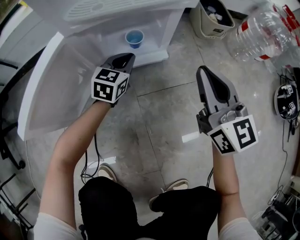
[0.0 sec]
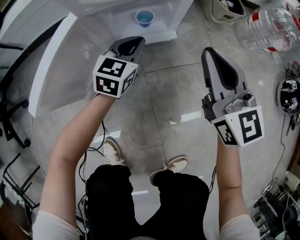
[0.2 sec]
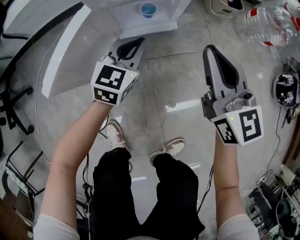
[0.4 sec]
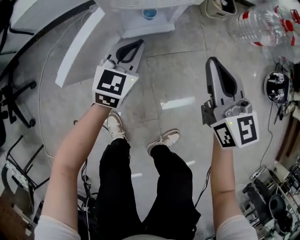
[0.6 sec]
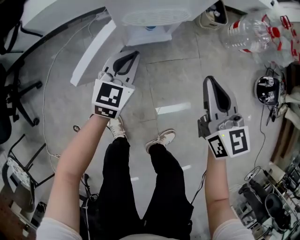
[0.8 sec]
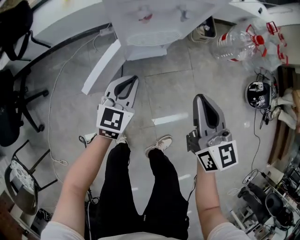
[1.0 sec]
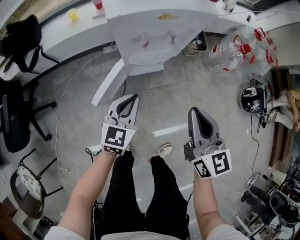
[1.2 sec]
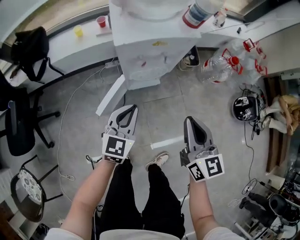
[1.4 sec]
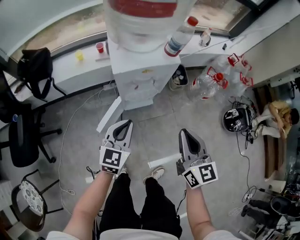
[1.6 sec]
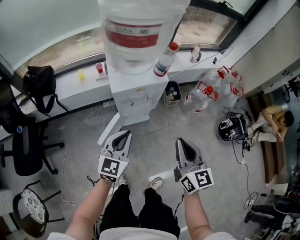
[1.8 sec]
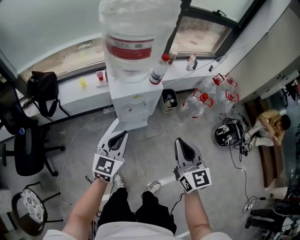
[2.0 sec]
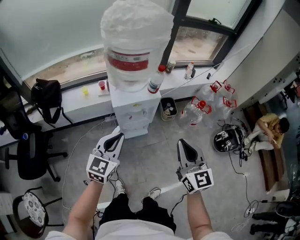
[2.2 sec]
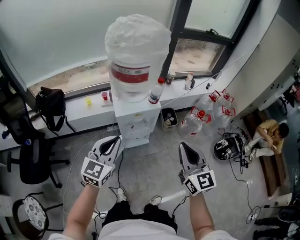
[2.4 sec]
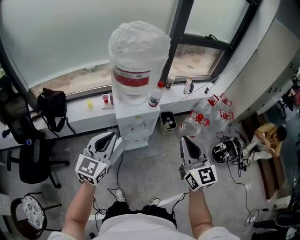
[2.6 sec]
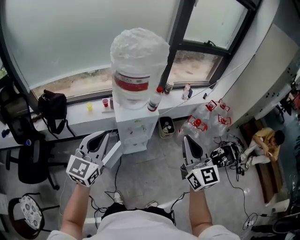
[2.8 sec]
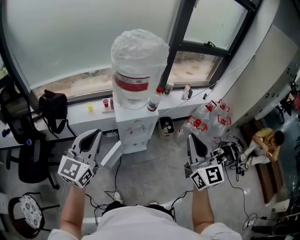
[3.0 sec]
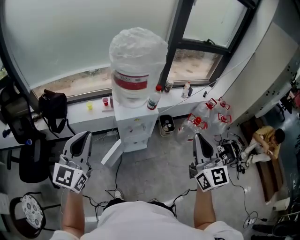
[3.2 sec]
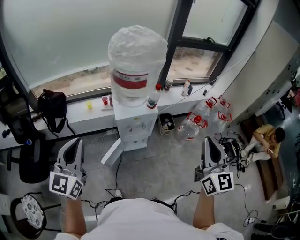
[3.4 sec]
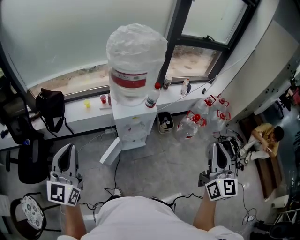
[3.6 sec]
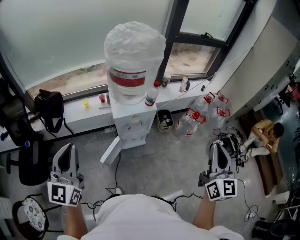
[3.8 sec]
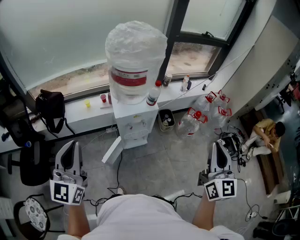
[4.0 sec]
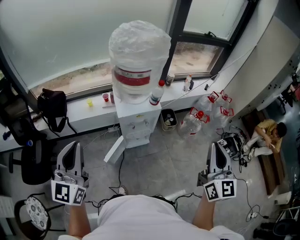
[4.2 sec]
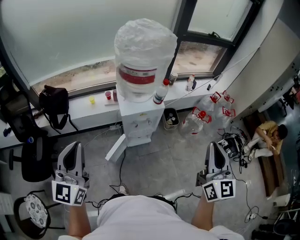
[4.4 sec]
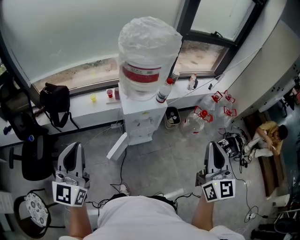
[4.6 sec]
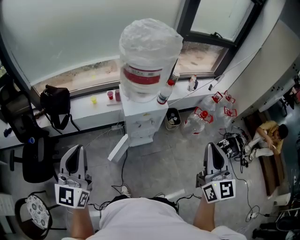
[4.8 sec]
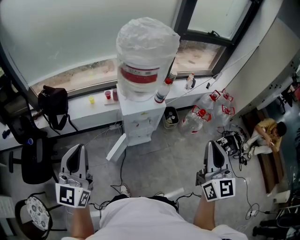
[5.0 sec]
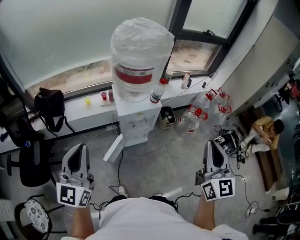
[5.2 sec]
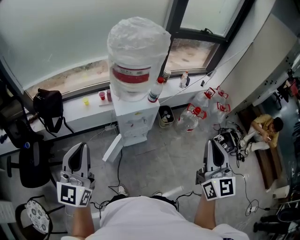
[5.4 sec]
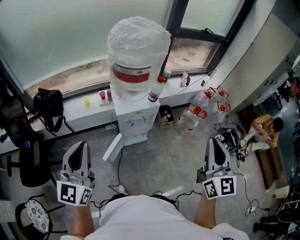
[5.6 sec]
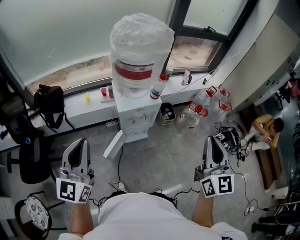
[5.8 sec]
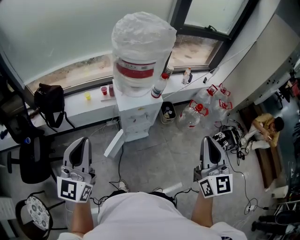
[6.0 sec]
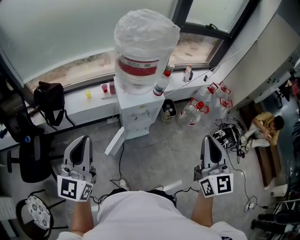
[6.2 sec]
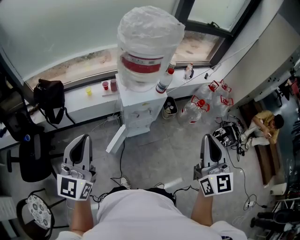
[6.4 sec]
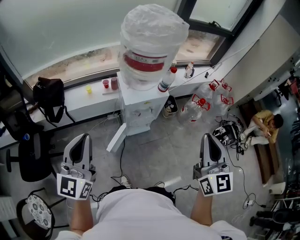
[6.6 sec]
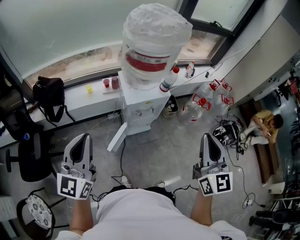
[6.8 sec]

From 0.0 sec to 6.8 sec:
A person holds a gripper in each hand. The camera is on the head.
From 0.0 sec to 1.4 sec: Both grippers travel together upward, roughly 50 cm.
From 1.4 sec to 2.8 sec: Both grippers travel together upward, approximately 40 cm. The right gripper rotates about 20 degrees.
From 2.8 sec to 4.0 sec: The left gripper goes about 10 cm to the left and backward; the right gripper shifts roughly 10 cm to the right.
From 5.4 sec to 6.8 sec: The left gripper moves to the left, approximately 5 cm; the right gripper travels to the left by approximately 10 cm.

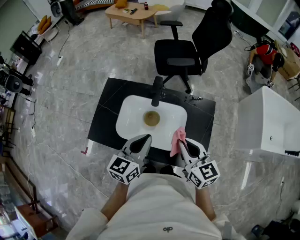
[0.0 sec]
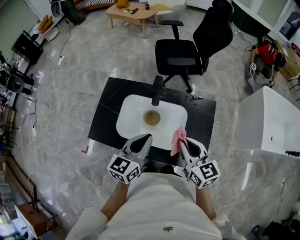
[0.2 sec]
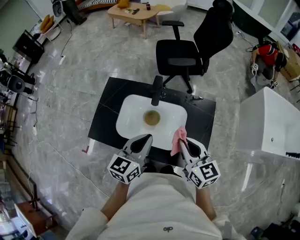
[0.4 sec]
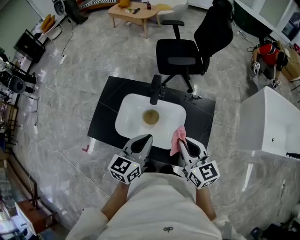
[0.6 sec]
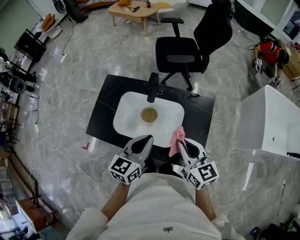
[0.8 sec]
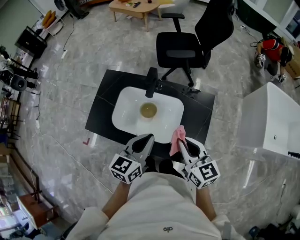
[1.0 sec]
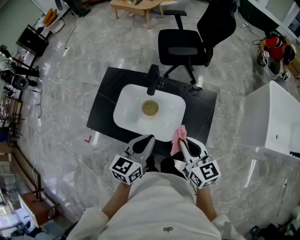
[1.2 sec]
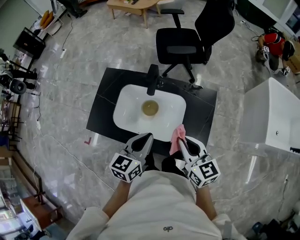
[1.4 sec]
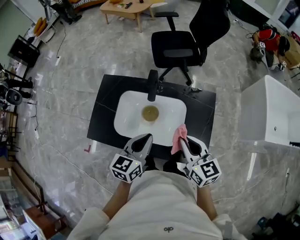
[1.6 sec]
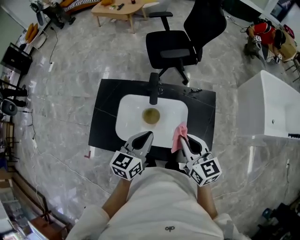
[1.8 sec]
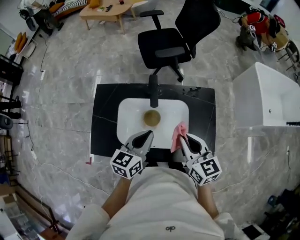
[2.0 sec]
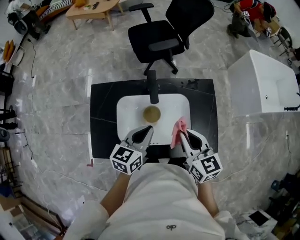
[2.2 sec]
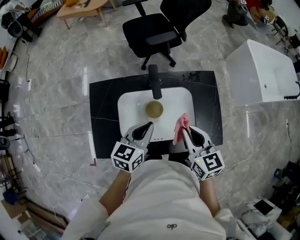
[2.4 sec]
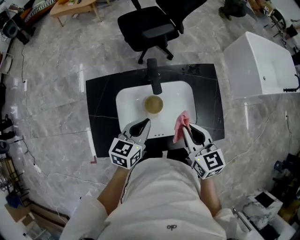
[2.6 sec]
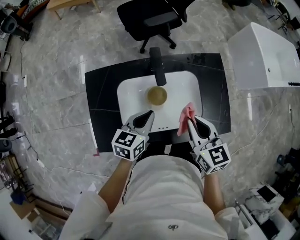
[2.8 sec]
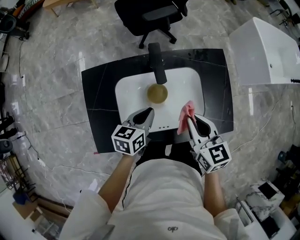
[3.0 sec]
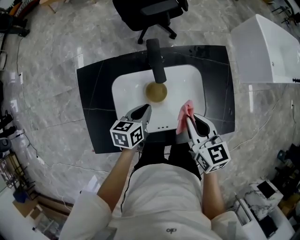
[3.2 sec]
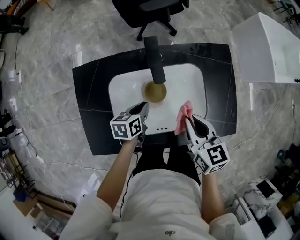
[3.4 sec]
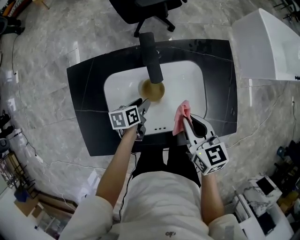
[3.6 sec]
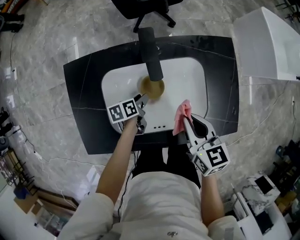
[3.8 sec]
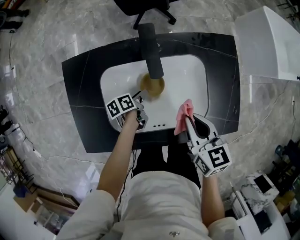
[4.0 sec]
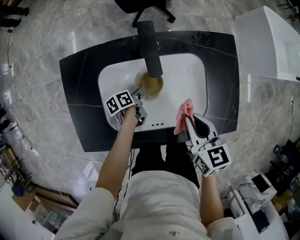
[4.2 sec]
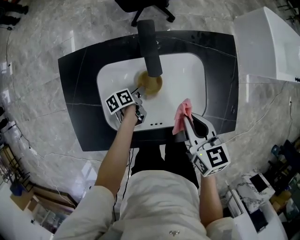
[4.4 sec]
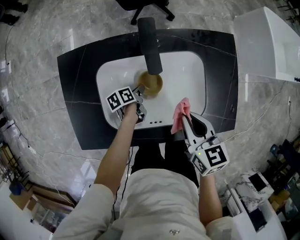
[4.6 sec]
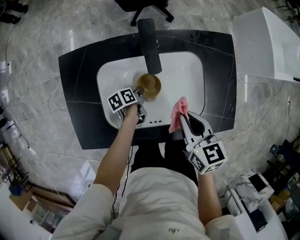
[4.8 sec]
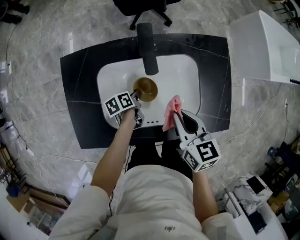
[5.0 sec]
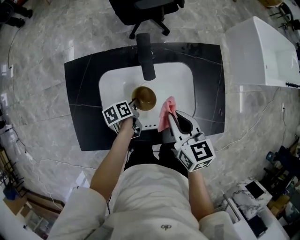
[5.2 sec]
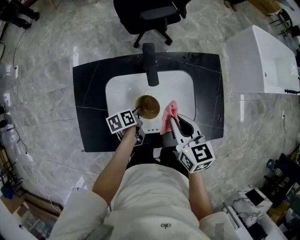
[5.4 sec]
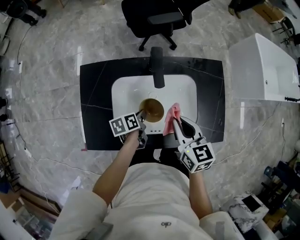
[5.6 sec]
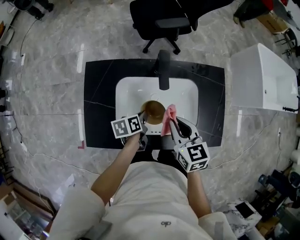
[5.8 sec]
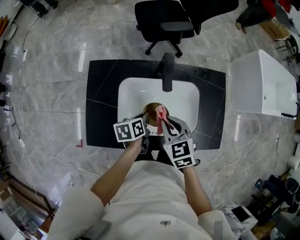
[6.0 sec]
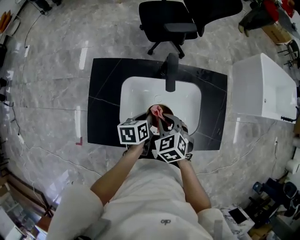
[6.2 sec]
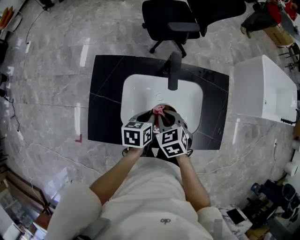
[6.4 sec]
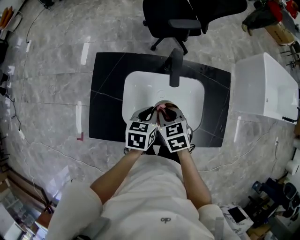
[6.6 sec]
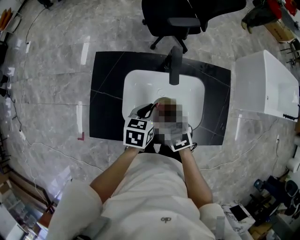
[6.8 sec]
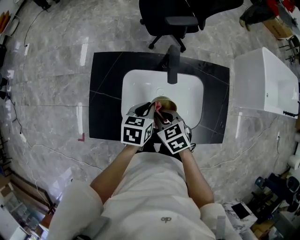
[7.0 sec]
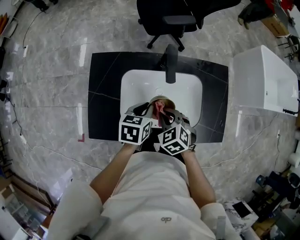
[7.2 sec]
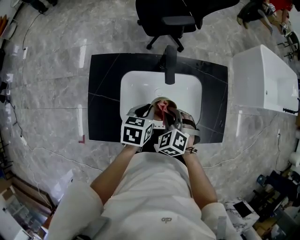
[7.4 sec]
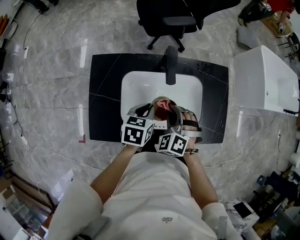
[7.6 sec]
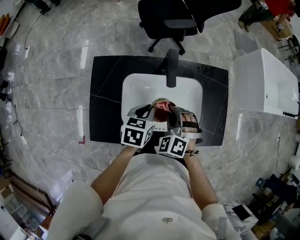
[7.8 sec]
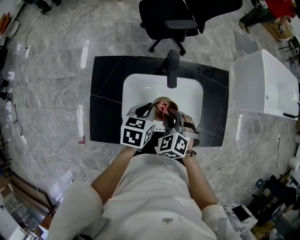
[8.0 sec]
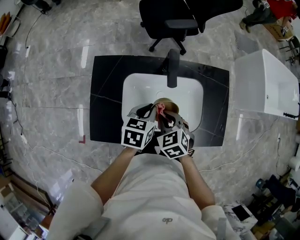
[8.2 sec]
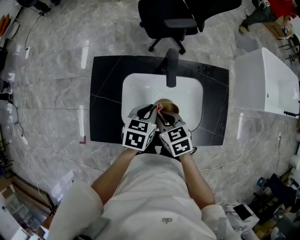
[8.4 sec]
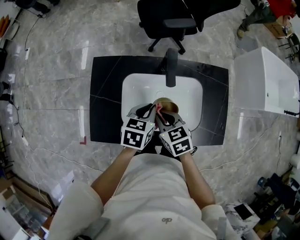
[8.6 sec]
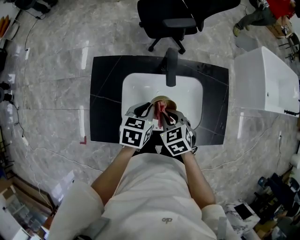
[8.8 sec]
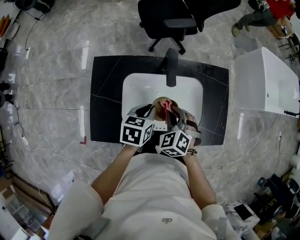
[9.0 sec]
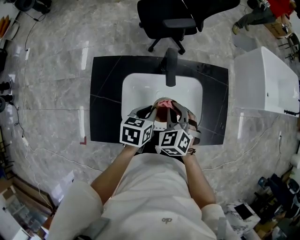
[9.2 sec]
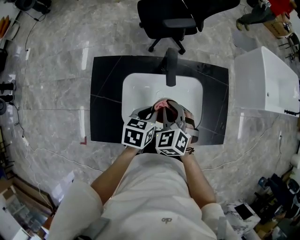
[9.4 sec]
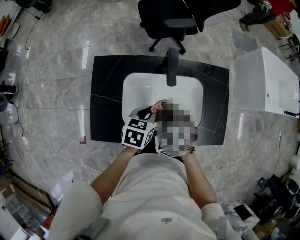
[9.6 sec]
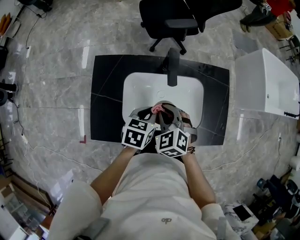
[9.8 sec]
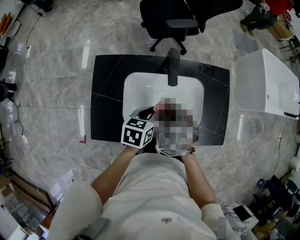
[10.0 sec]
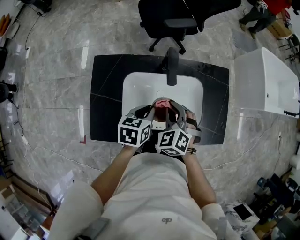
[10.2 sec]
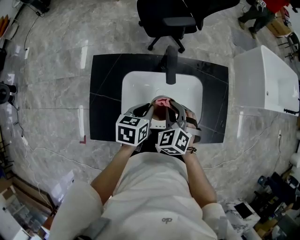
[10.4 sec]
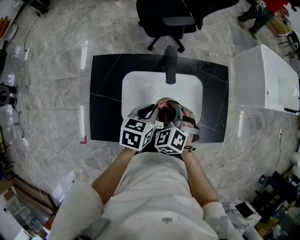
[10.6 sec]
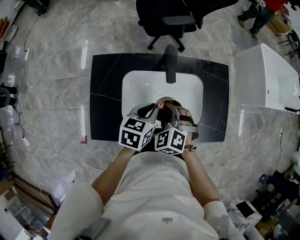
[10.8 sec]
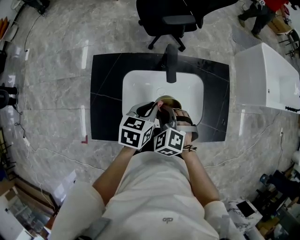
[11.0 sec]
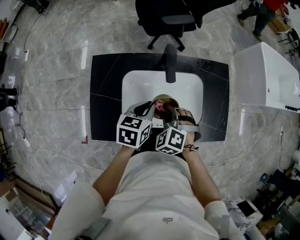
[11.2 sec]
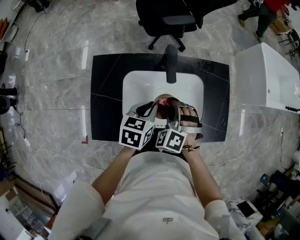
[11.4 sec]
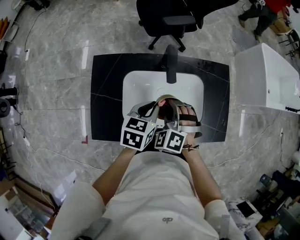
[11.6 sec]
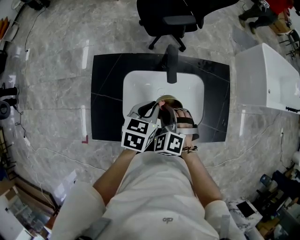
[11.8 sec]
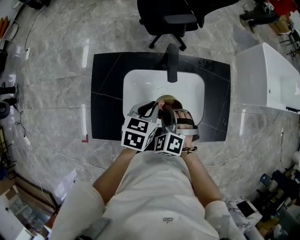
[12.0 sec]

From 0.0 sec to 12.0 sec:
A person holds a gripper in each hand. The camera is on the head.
From 1.6 sec to 3.0 sec: The right gripper goes approximately 15 cm to the left and downward, and rotates roughly 20 degrees. Meanwhile the left gripper shifts roughly 20 cm downward, to the left and forward, and changes its angle by about 30 degrees.
From 3.0 sec to 4.4 sec: The left gripper shifts approximately 25 cm downward, rolls counterclockwise, seen from behind, by about 50 degrees, and opens its fingers; the right gripper shifts approximately 10 cm downward.
From 4.4 sec to 6.0 sec: The left gripper moves upward, some 20 cm, and closes its fingers. Meanwhile the right gripper is displaced to the left by approximately 10 cm, and swivels some 30 degrees.
From 6.0 sec to 7.6 sec: The left gripper goes some 5 cm upward, and rotates about 30 degrees, while the right gripper rotates around the line of its fingers by some 40 degrees, counterclockwise from behind.
From 9.0 sec to 10.4 sec: There are only small adjustments of the grippers.

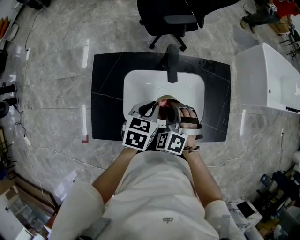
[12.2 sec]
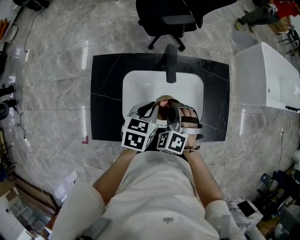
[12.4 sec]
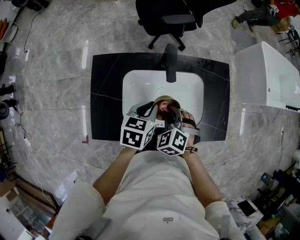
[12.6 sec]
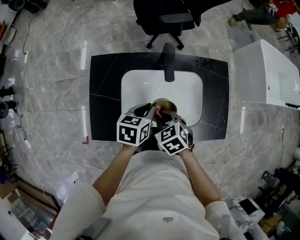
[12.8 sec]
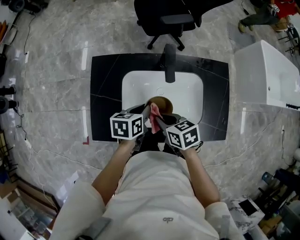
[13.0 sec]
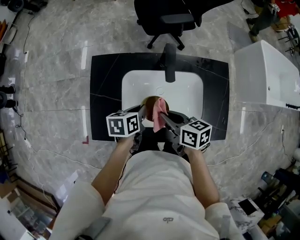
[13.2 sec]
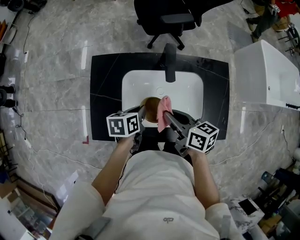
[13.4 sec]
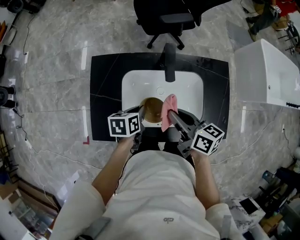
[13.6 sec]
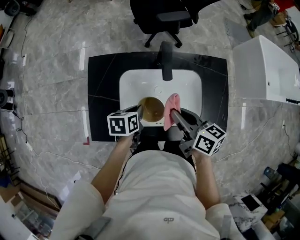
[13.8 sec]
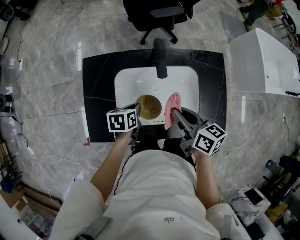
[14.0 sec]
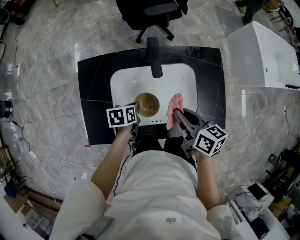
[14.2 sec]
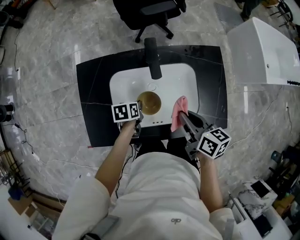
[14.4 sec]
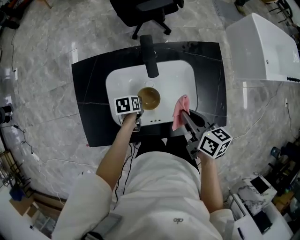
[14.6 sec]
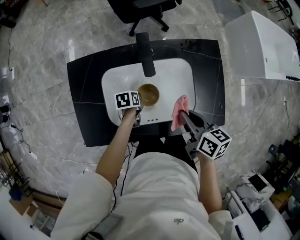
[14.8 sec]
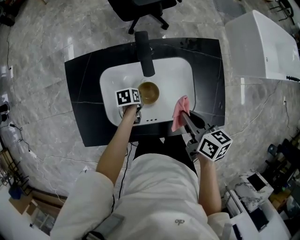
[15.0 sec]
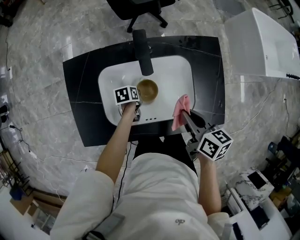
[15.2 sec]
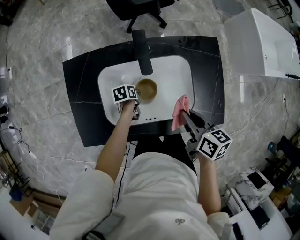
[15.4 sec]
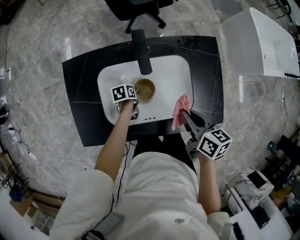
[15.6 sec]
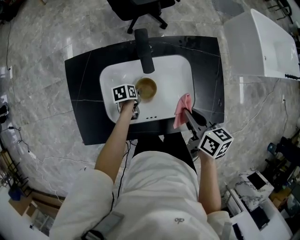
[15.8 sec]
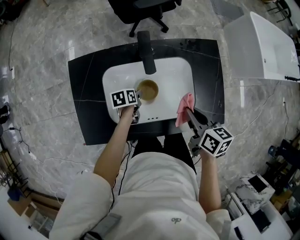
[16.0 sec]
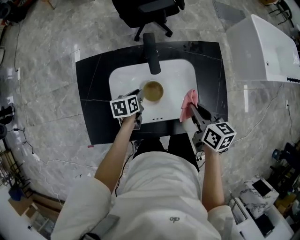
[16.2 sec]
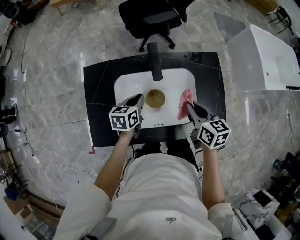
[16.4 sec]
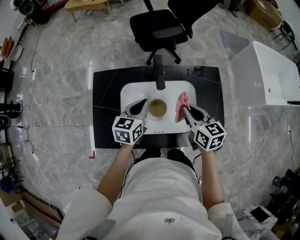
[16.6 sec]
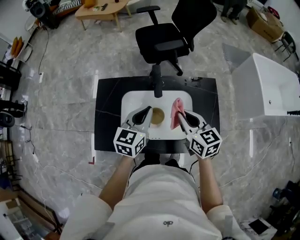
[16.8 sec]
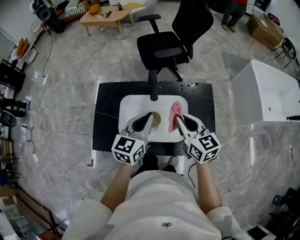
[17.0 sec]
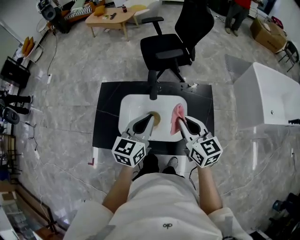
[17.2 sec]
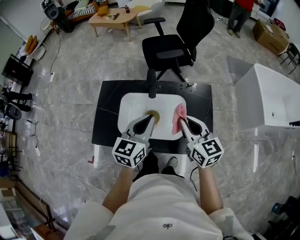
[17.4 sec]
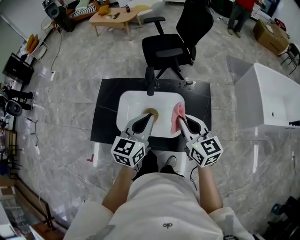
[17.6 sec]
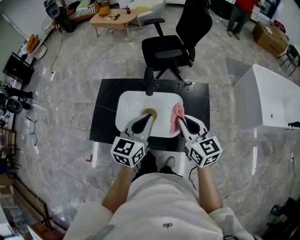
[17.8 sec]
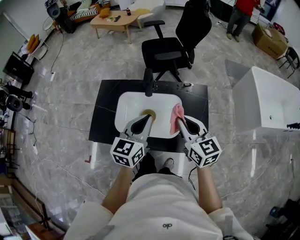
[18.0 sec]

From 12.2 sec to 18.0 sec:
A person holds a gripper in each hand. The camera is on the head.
From 12.2 sec to 13.6 sec: The right gripper travels upward by about 5 cm, and rolls clockwise, seen from behind, by some 90 degrees. Meanwhile the left gripper goes about 5 cm downward, and swivels roughly 30 degrees.
From 13.6 sec to 15.0 sec: The left gripper goes about 20 cm downward. The right gripper moves to the right, some 10 cm, and turns by approximately 20 degrees.
From 15.0 sec to 16.6 sec: The right gripper ends up some 5 cm from where it was, and turns by about 20 degrees, while the left gripper heads upward, covering approximately 25 cm, points its fingers some 30 degrees further upward, and opens and closes again.
From 16.6 sec to 18.0 sec: The two grippers go about 20 cm upward, backward and to the right. The right gripper swivels about 20 degrees.
